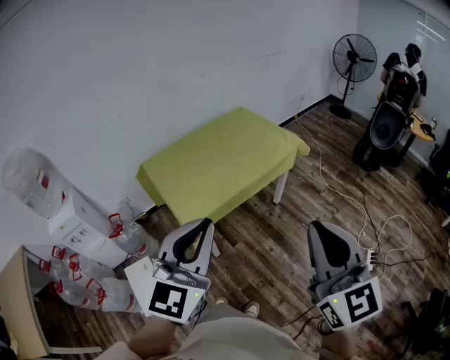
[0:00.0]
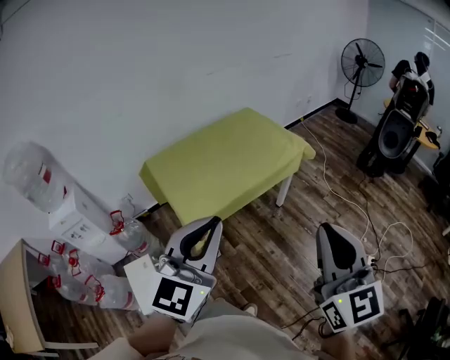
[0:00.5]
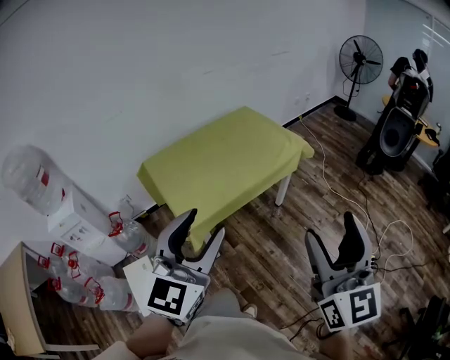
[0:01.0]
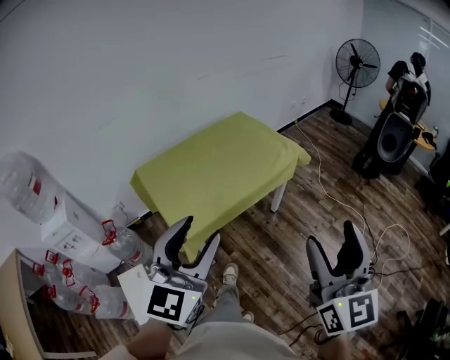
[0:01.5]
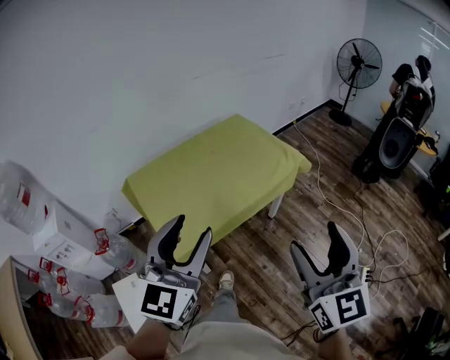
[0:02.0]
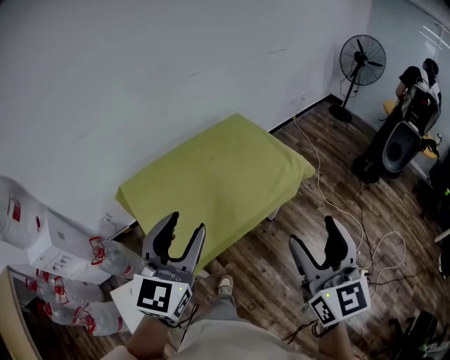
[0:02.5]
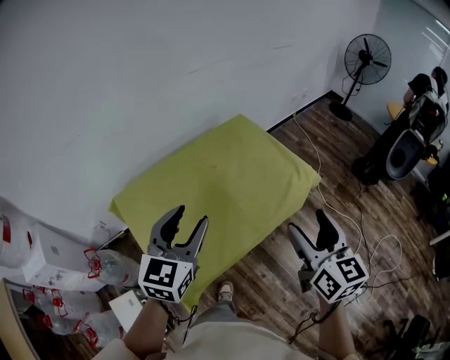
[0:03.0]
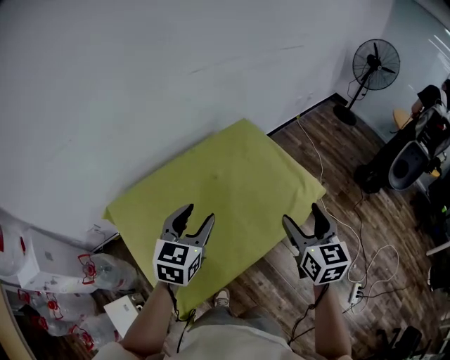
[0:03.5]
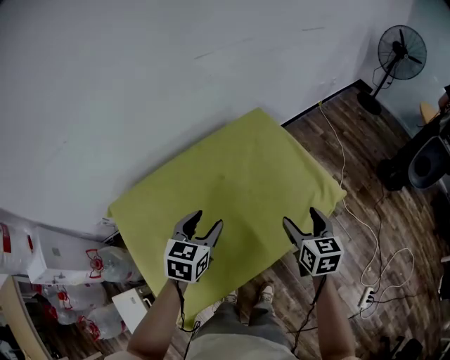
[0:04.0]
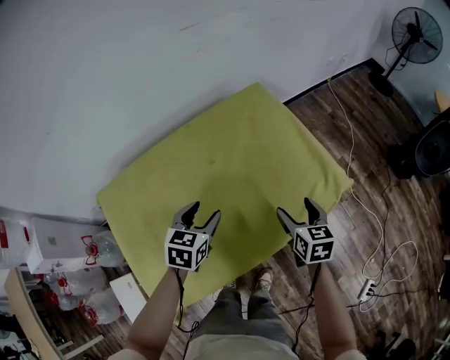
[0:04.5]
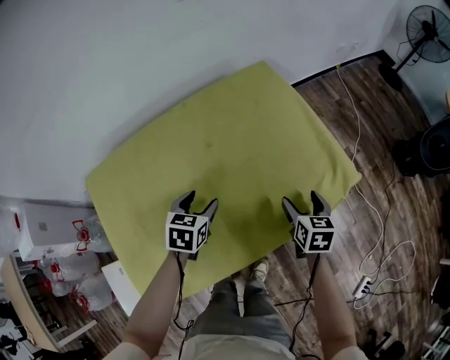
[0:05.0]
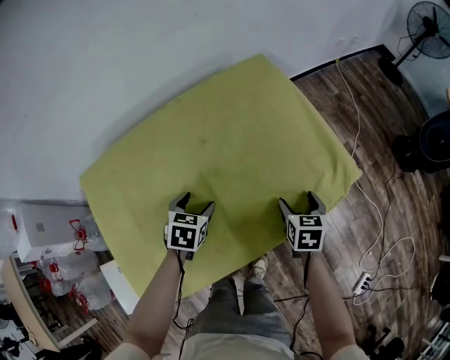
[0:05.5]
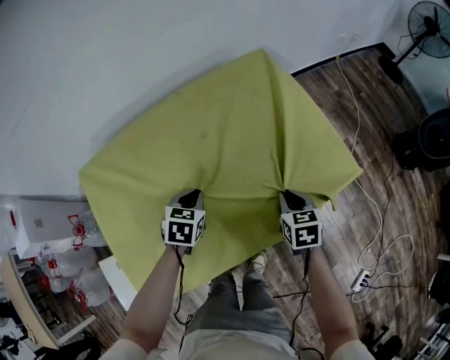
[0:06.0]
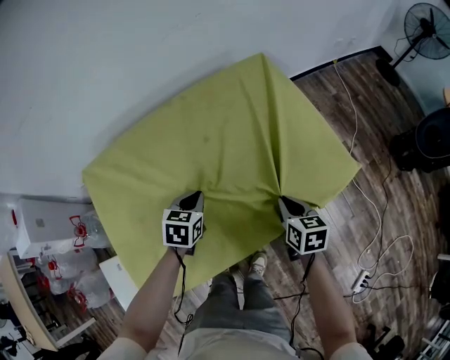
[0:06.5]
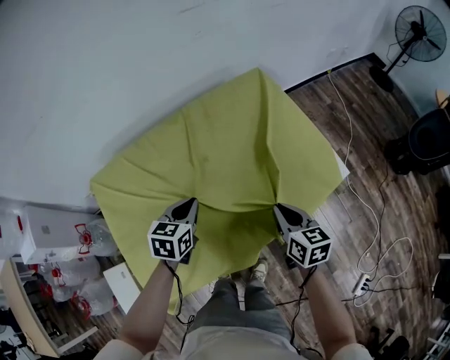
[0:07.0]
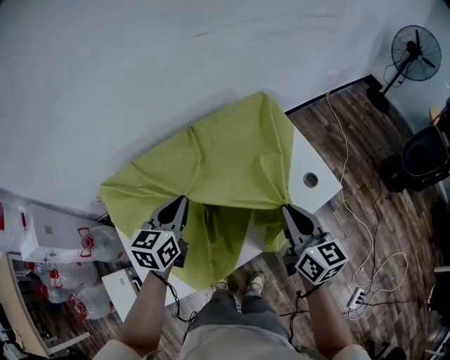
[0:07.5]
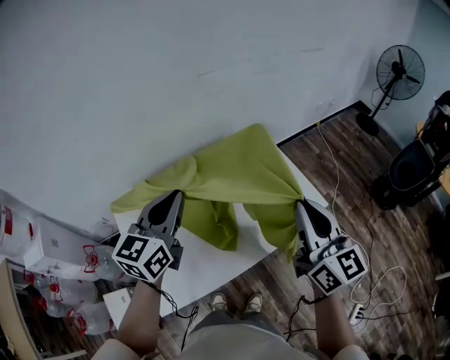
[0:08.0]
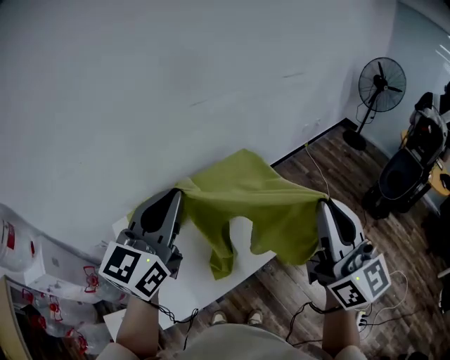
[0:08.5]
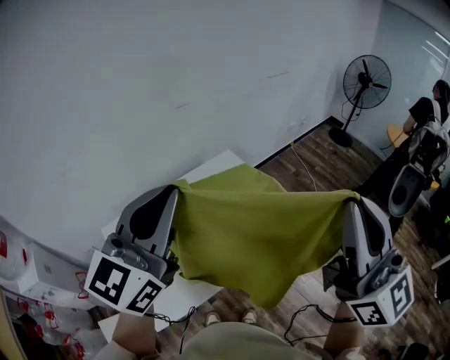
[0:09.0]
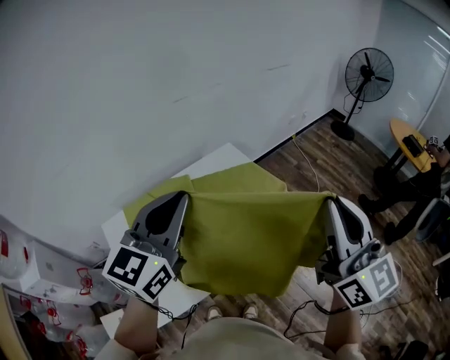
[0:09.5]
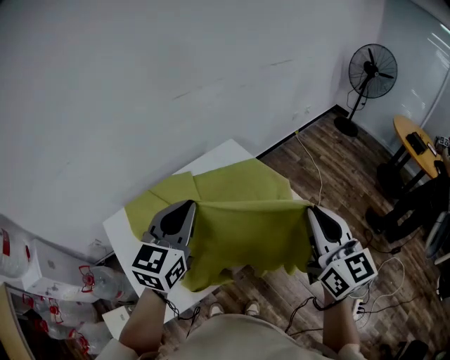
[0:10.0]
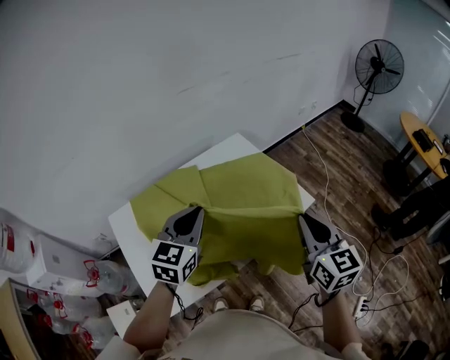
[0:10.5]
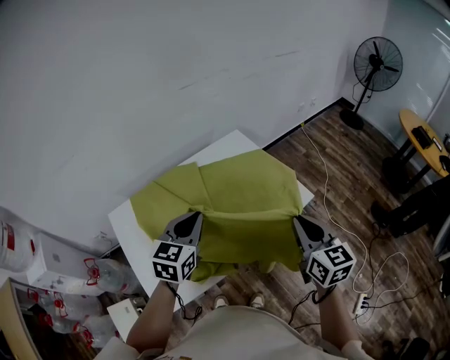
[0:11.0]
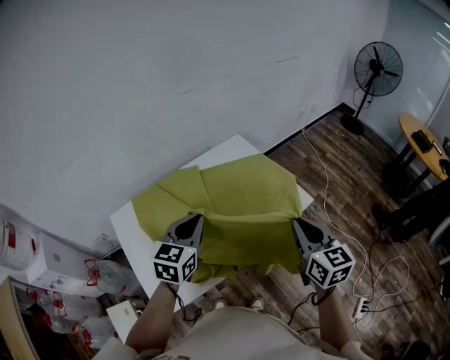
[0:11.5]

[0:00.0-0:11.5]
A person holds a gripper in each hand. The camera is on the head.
0:00.0 to 0:02.0: Both grippers travel together forward, approximately 15 cm. The right gripper opens its fingers. The left gripper opens up.
0:02.0 to 0:04.0: Both grippers are carried forward, about 50 cm. The grippers both shift downward by roughly 25 cm. The right gripper tips its fingers downward by about 30 degrees. Meanwhile the left gripper points its fingers roughly 30 degrees further downward.
0:04.0 to 0:06.0: The grippers both shift downward by about 20 cm. The left gripper swivels approximately 20 degrees, and closes. Meanwhile the right gripper changes its angle by some 20 degrees, and closes up.
0:06.0 to 0:07.5: The two grippers go roughly 25 cm upward. The left gripper points its fingers roughly 30 degrees further upward. Meanwhile the right gripper angles its fingers upward, by roughly 40 degrees.
0:07.5 to 0:09.5: The two grippers go approximately 35 cm upward. The right gripper turns by about 30 degrees; the left gripper rotates roughly 30 degrees.
0:09.5 to 0:11.5: Both grippers travel together downward, roughly 20 cm. The left gripper rotates about 20 degrees. Meanwhile the right gripper turns by some 30 degrees.

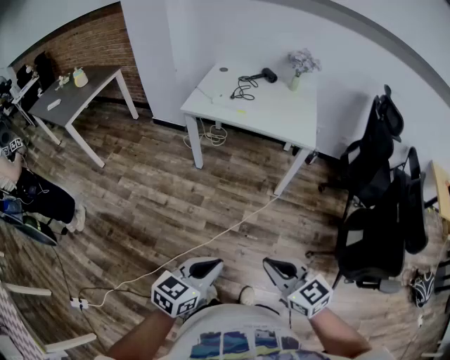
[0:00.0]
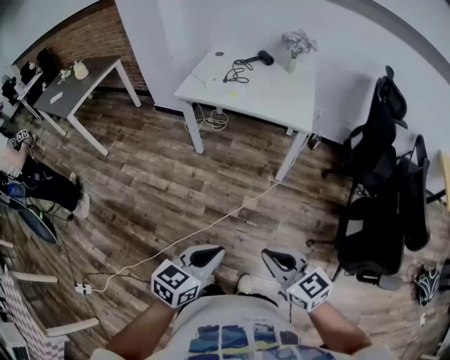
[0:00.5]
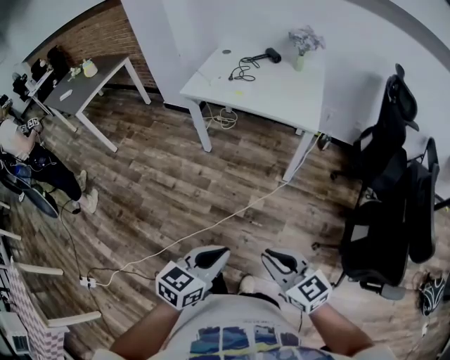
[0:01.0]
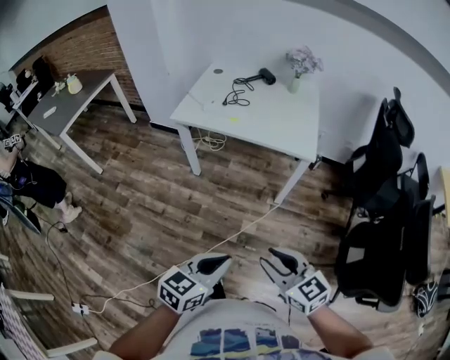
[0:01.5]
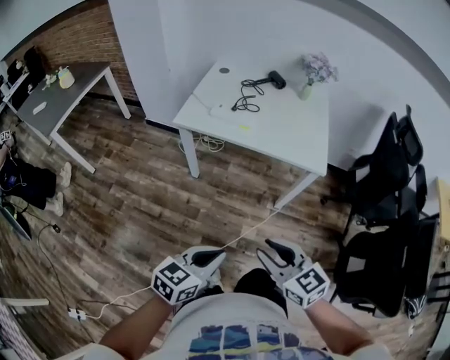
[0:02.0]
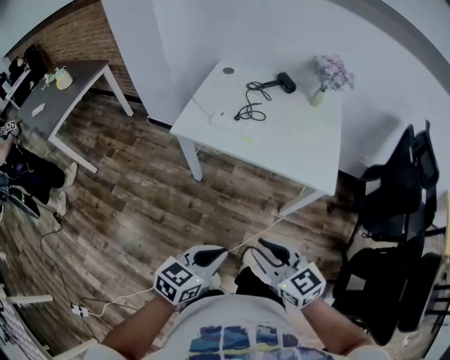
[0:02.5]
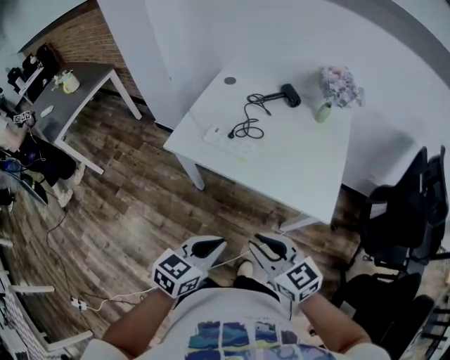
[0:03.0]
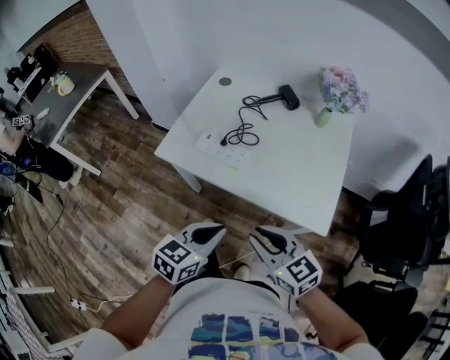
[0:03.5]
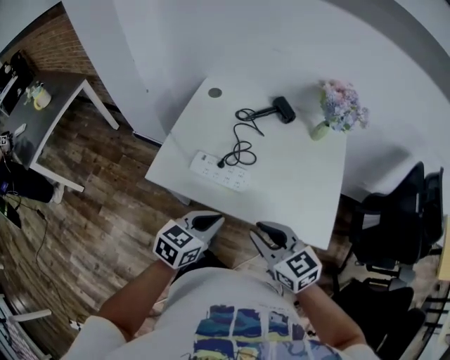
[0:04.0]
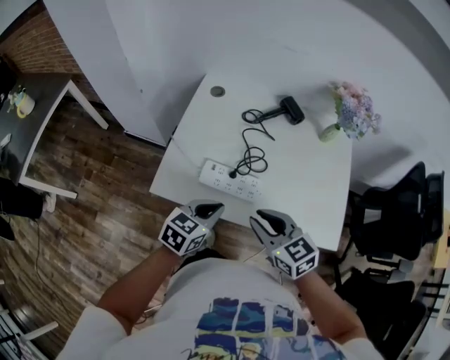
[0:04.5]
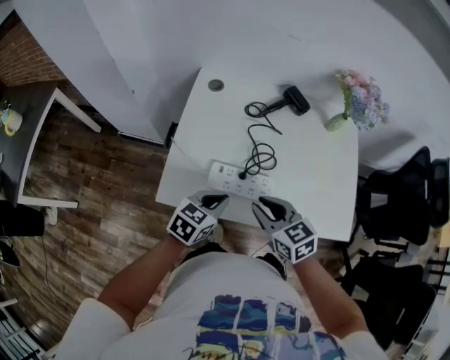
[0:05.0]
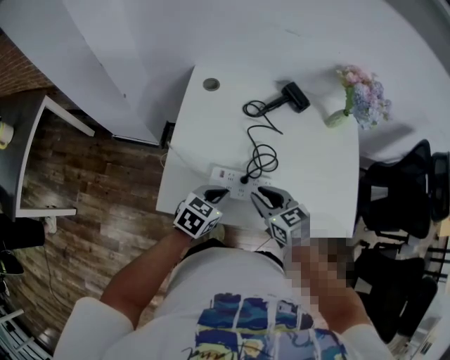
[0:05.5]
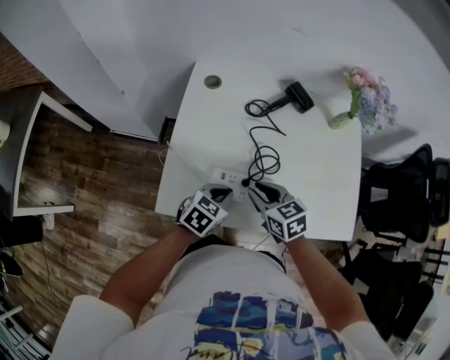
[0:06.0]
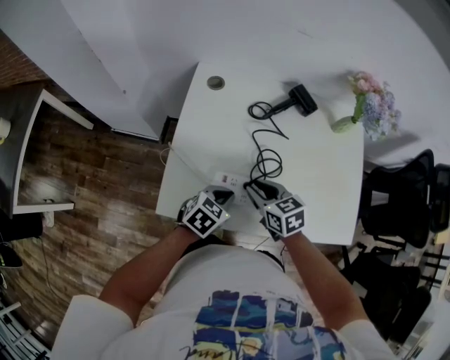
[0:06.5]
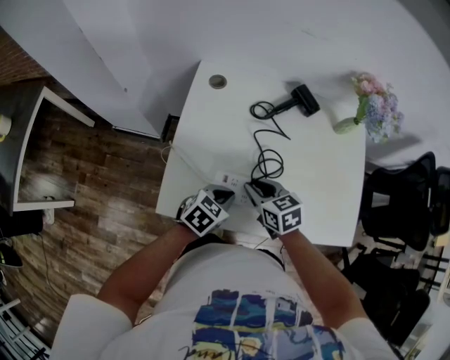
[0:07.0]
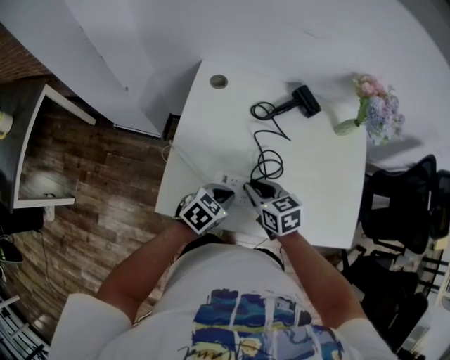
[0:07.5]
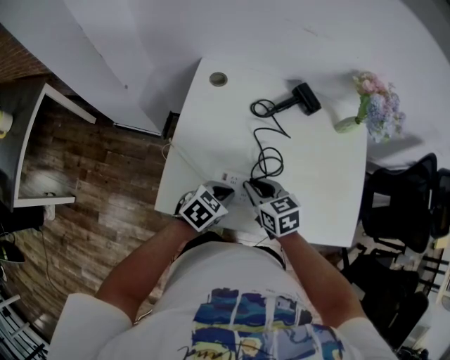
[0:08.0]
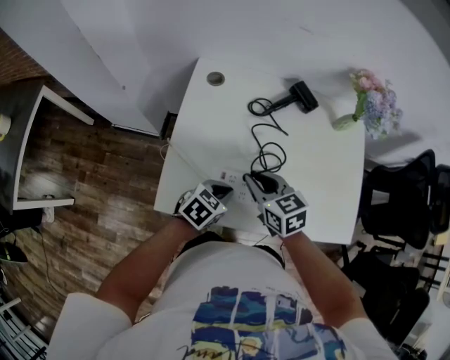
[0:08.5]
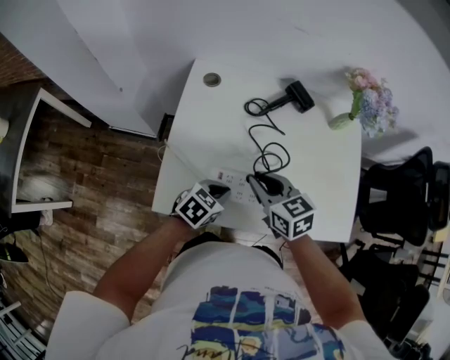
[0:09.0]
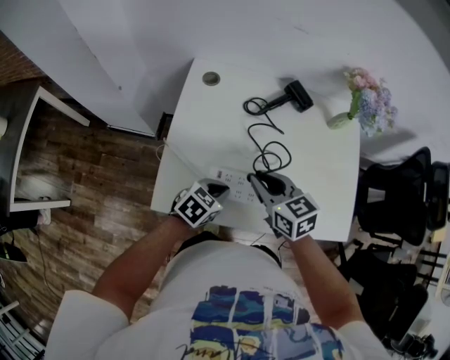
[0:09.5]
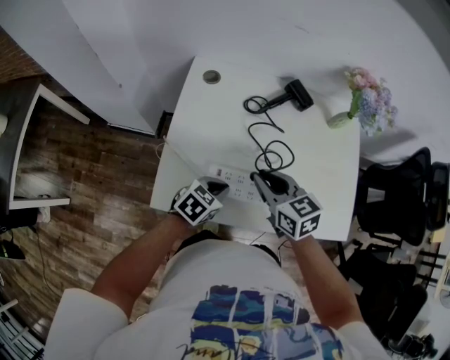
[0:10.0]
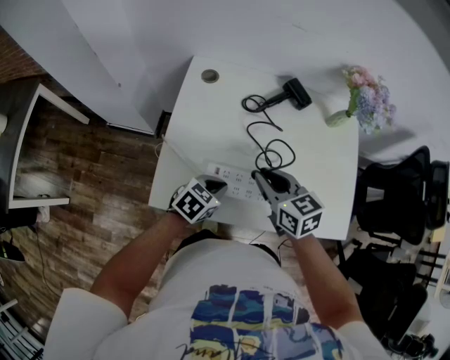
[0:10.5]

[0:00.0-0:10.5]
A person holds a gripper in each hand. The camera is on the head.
0:00.0 to 0:02.0: Both grippers move forward, about 25 cm. The right gripper opens its fingers.
0:02.0 to 0:04.0: Both grippers are carried forward, approximately 50 cm.
0:04.0 to 0:06.5: Both grippers move forward, downward and to the left, approximately 30 cm. The left gripper changes its angle by about 20 degrees; the right gripper swivels some 30 degrees.
0:06.5 to 0:08.5: The right gripper shifts by roughly 5 cm.
0:08.5 to 0:10.5: The right gripper shifts by some 5 cm.

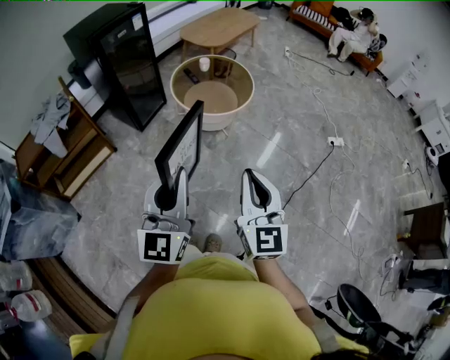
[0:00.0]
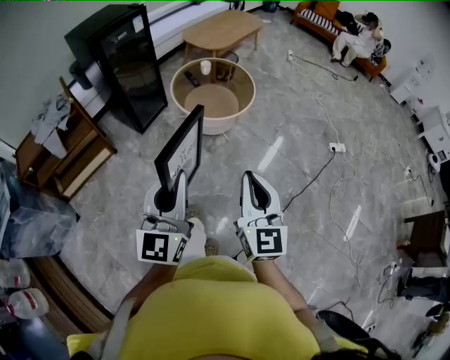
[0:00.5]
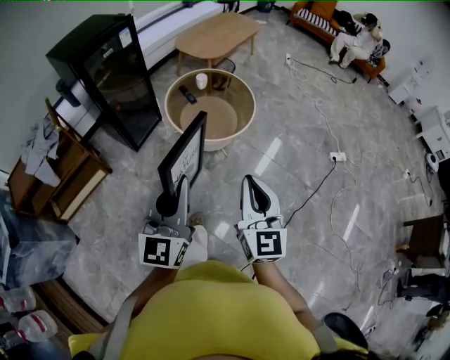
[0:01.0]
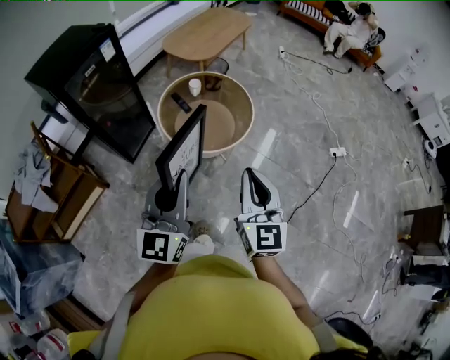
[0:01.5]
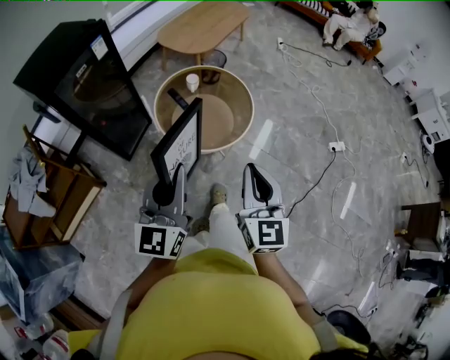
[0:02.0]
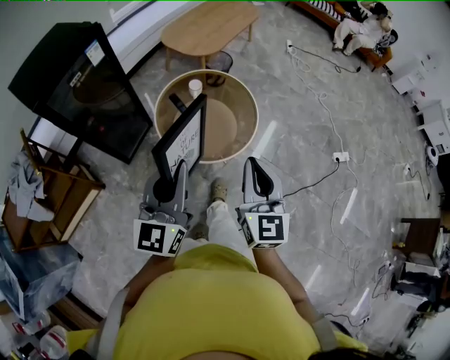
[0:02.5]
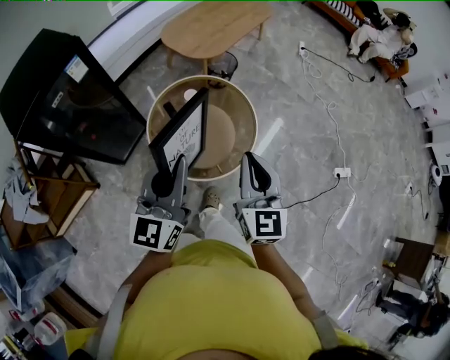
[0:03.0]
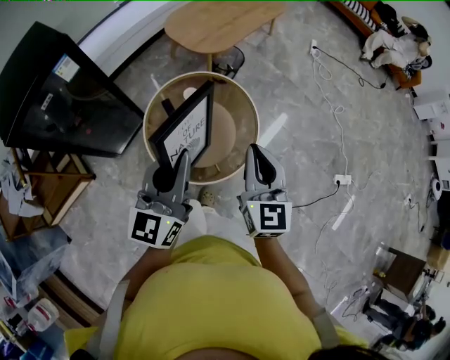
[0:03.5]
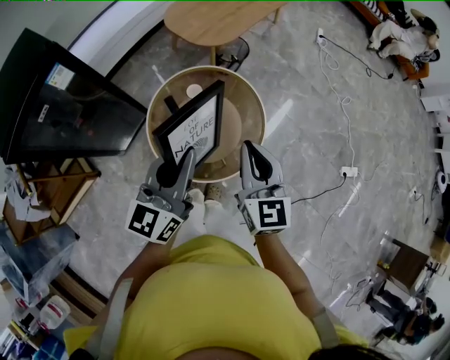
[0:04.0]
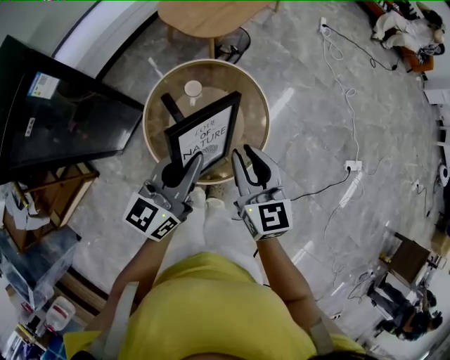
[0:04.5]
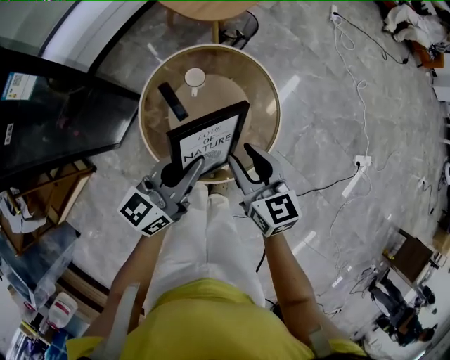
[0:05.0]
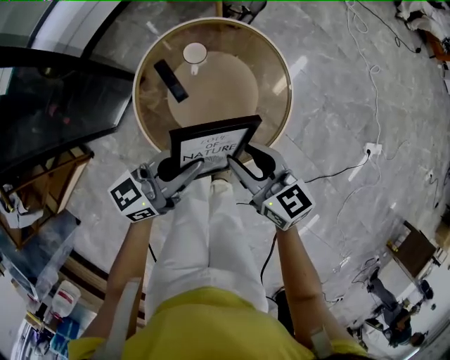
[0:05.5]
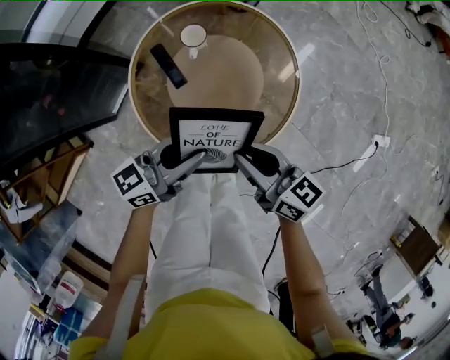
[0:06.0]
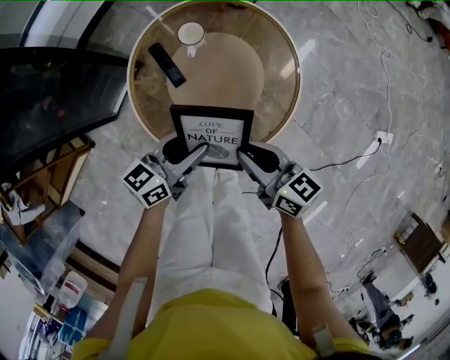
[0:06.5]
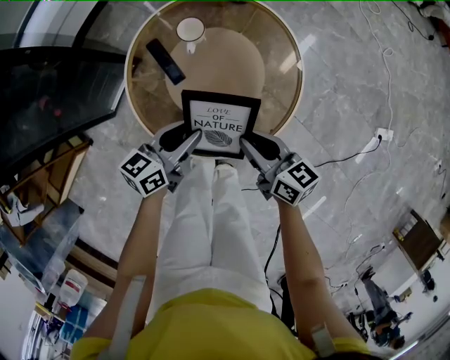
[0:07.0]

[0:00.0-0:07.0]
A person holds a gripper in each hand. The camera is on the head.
0:00.0 to 0:02.0: Both grippers move forward, approximately 35 cm.
0:02.0 to 0:03.5: The two grippers go approximately 35 cm forward.
0:03.5 to 0:05.0: The grippers both shift downward by some 20 cm. The left gripper changes its angle by approximately 30 degrees. The right gripper swivels roughly 30 degrees, and opens.
0:05.0 to 0:07.0: The grippers both shift downward by roughly 20 cm. The right gripper rotates about 30 degrees, while the left gripper changes its angle by roughly 20 degrees, and opens up.
